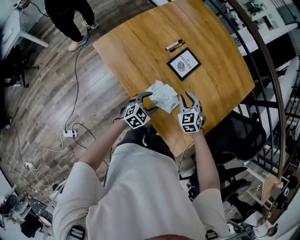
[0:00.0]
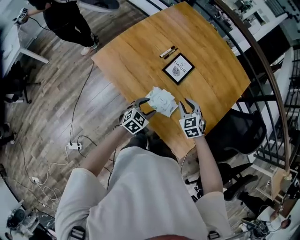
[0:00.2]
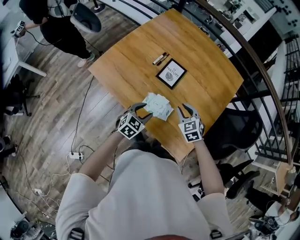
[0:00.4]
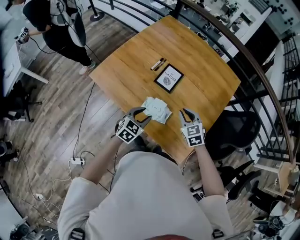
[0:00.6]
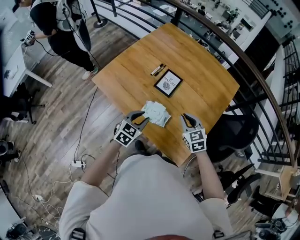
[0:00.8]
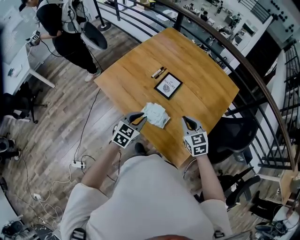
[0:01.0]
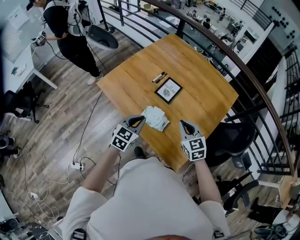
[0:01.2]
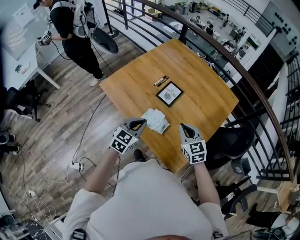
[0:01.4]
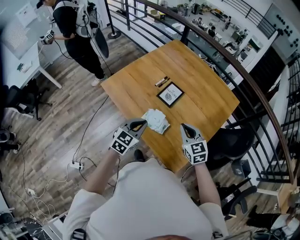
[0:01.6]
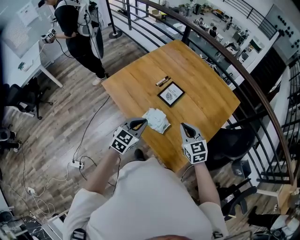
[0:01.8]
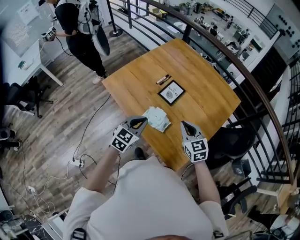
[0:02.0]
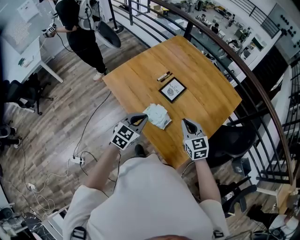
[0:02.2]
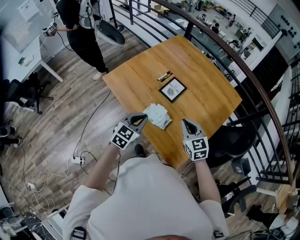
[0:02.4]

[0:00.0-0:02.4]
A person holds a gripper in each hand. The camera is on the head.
0:00.0 to 0:01.2: The left gripper heads upward, covering roughly 25 cm, and closes. The right gripper is displaced upward and backward by about 20 cm, swivels roughly 20 degrees, and closes up.
0:01.2 to 0:02.4: The grippers make only small movements.

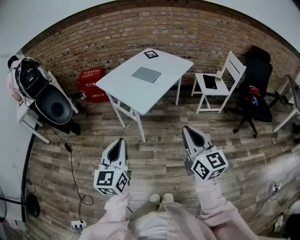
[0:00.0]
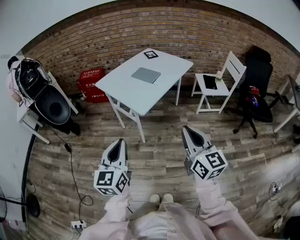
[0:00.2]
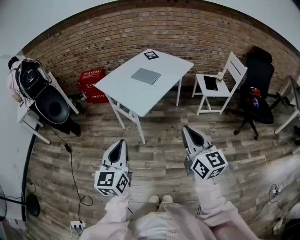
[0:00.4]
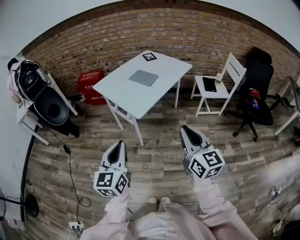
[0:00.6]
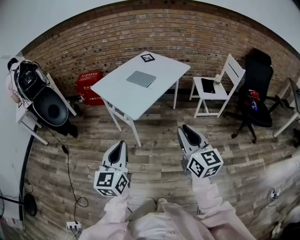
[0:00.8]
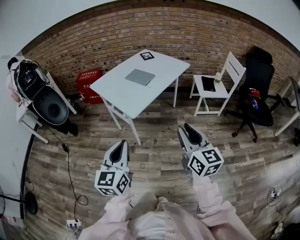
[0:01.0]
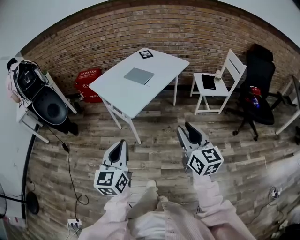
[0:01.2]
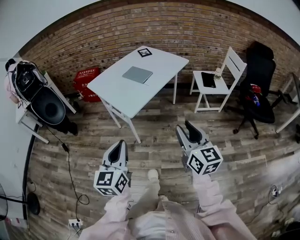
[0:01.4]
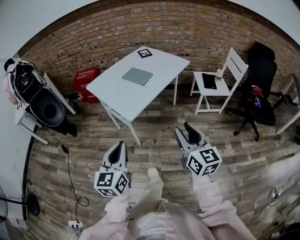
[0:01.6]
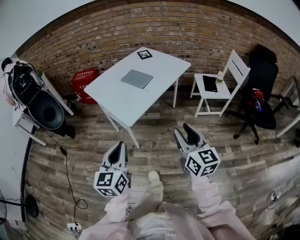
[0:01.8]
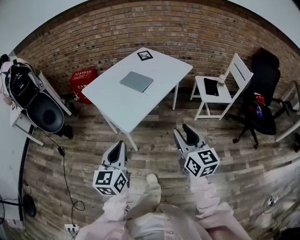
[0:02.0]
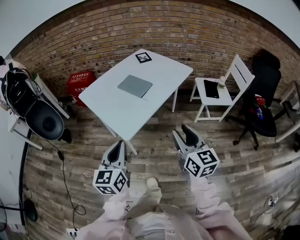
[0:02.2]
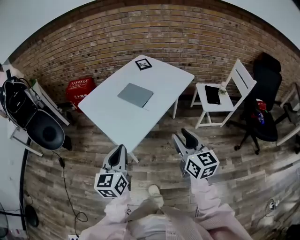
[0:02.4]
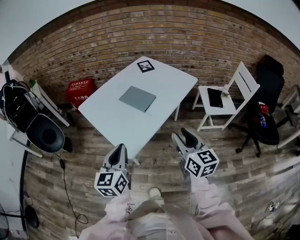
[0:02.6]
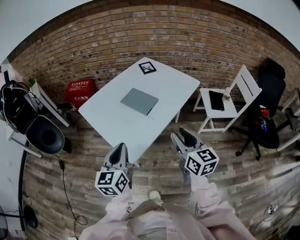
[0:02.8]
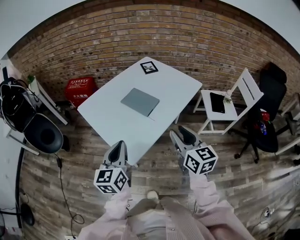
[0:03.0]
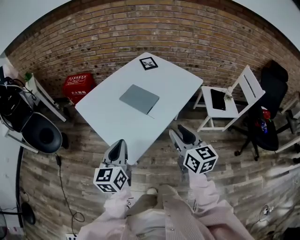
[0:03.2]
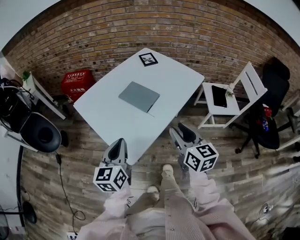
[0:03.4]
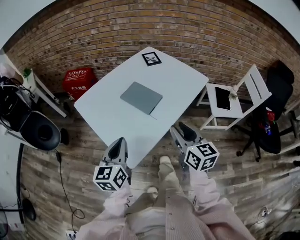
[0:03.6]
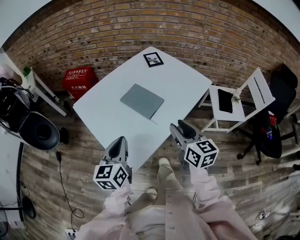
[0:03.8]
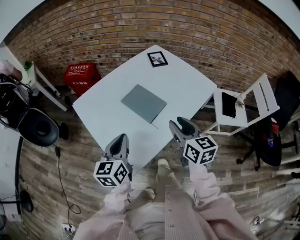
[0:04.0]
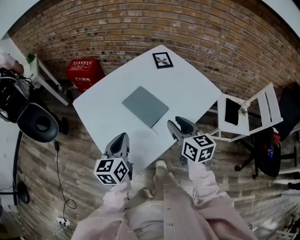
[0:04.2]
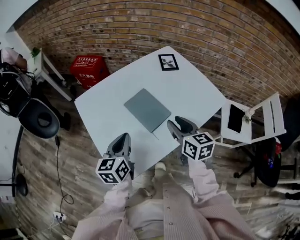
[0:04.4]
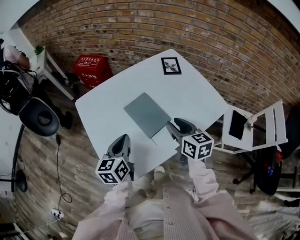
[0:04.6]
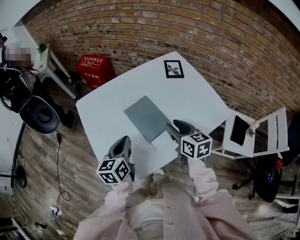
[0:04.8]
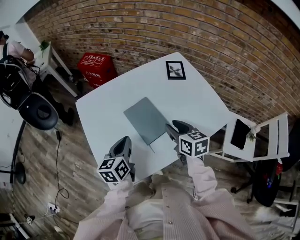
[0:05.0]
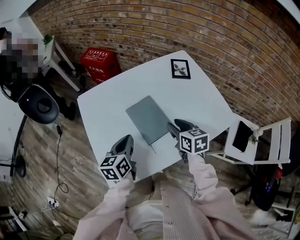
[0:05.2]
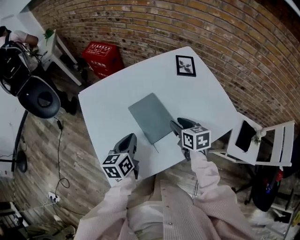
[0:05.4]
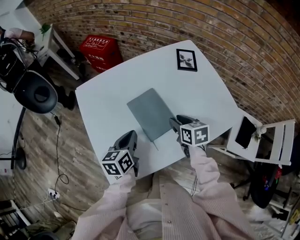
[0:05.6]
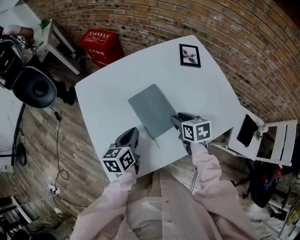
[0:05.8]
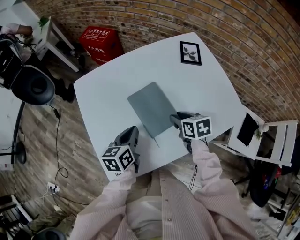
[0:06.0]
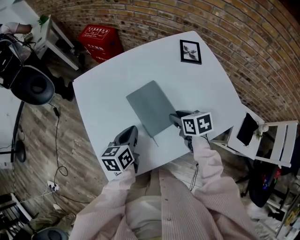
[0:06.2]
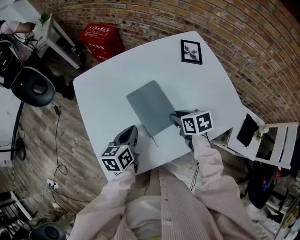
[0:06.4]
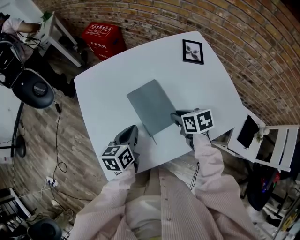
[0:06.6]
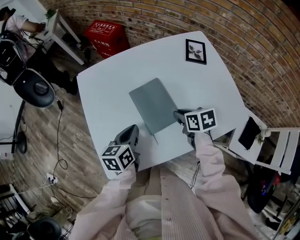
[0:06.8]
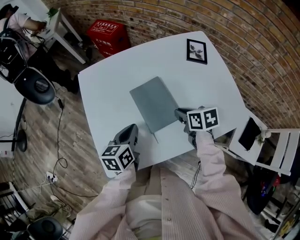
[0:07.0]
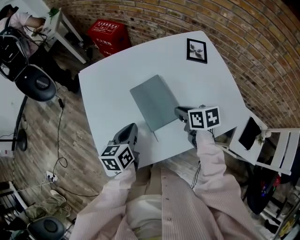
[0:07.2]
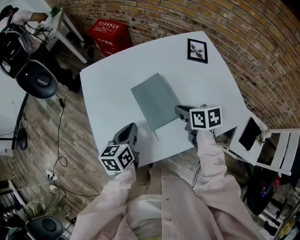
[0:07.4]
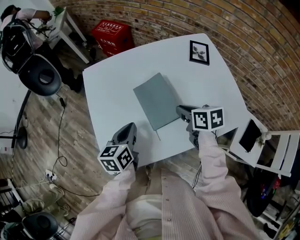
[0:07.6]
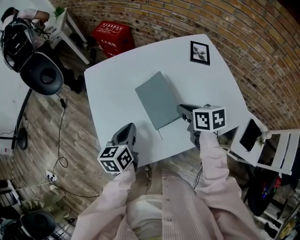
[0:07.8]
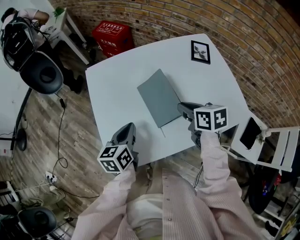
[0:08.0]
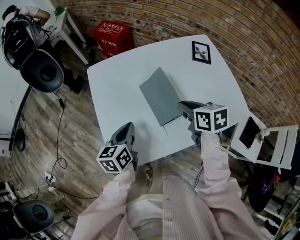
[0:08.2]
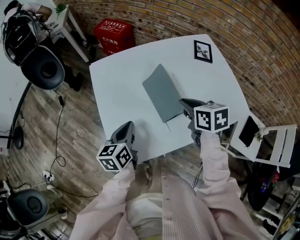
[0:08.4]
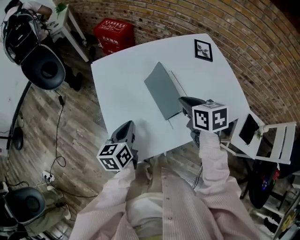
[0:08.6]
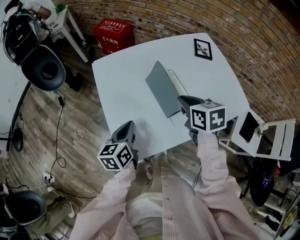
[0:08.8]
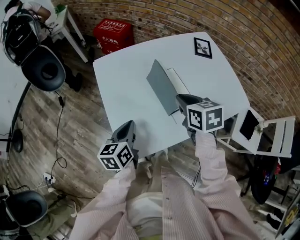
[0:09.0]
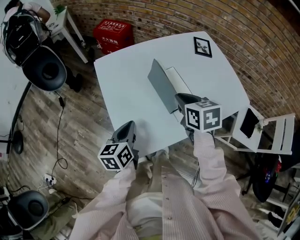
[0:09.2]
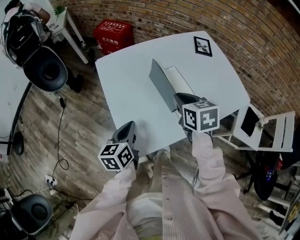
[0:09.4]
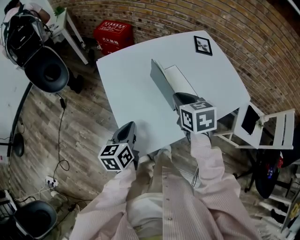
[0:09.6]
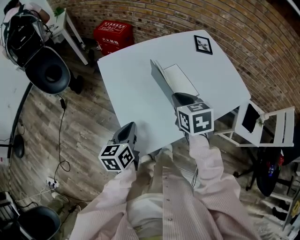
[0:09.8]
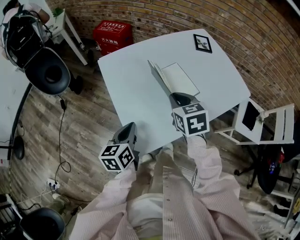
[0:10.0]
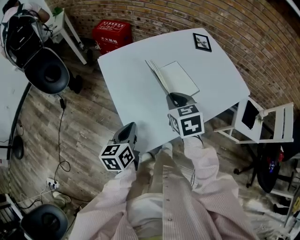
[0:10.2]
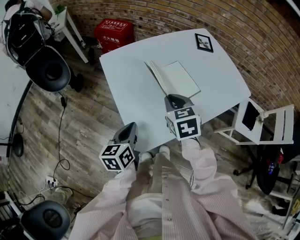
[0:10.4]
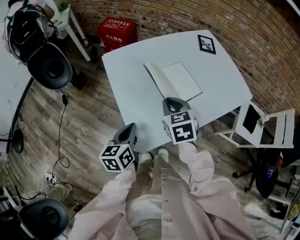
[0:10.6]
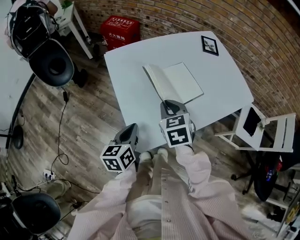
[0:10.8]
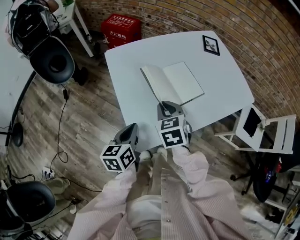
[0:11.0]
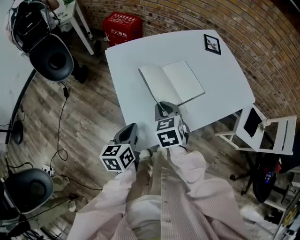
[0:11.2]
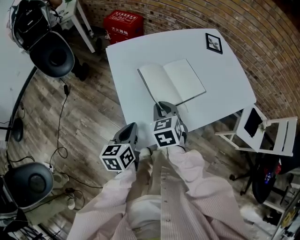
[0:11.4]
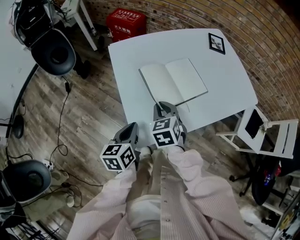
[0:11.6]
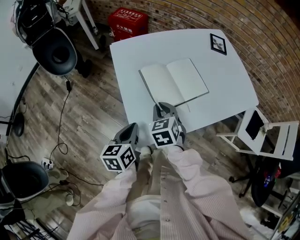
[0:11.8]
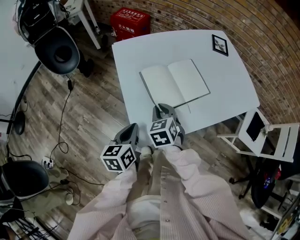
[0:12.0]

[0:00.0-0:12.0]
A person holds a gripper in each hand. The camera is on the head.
0:00.0 to 0:01.6: The grippers both shift to the right and forward by roughly 10 cm. The right gripper opens its fingers.
0:01.6 to 0:03.0: Both grippers move forward, approximately 30 cm.
0:03.0 to 0:04.4: The left gripper shifts roughly 20 cm forward and downward. The right gripper travels forward by some 25 cm, and rotates some 20 degrees.
0:04.4 to 0:06.0: The right gripper shifts some 20 cm downward and forward, and swivels roughly 30 degrees, while the left gripper heads downward and forward, covering about 10 cm.
0:06.0 to 0:07.6: The right gripper ends up approximately 5 cm from where it was, and closes its fingers.
0:07.6 to 0:09.0: The right gripper travels to the left and upward by roughly 15 cm, while the left gripper travels to the left by some 10 cm.
0:09.0 to 0:10.4: The right gripper heads to the left, covering roughly 10 cm, while the left gripper moves backward, roughly 5 cm.
0:10.4 to 0:12.0: The right gripper shifts roughly 10 cm downward and to the left.

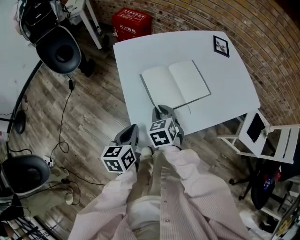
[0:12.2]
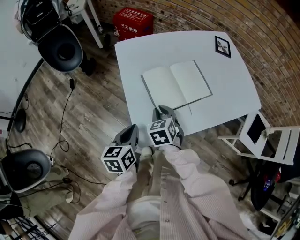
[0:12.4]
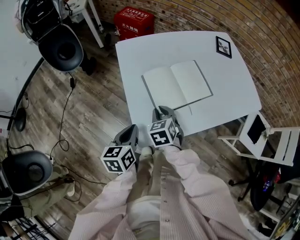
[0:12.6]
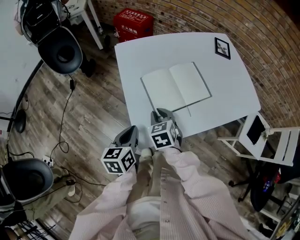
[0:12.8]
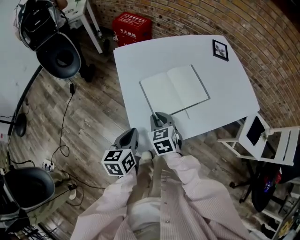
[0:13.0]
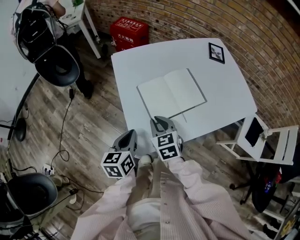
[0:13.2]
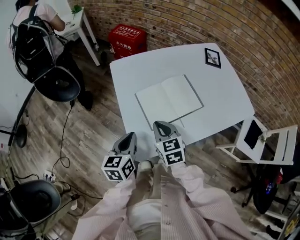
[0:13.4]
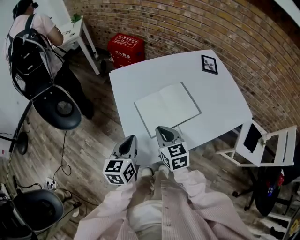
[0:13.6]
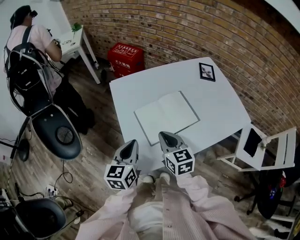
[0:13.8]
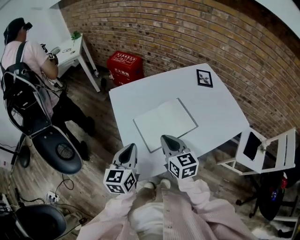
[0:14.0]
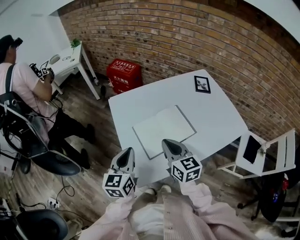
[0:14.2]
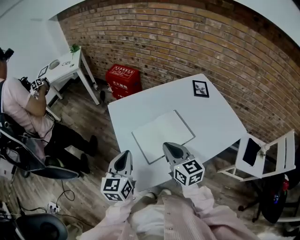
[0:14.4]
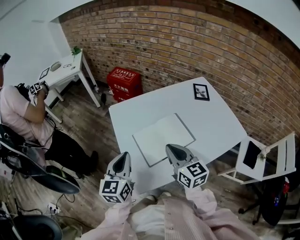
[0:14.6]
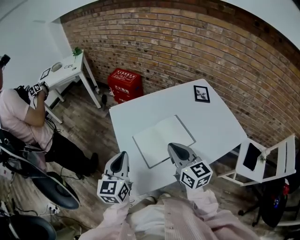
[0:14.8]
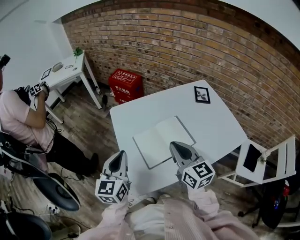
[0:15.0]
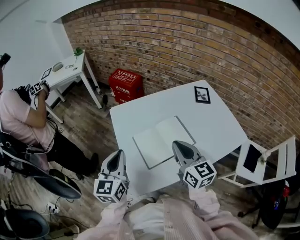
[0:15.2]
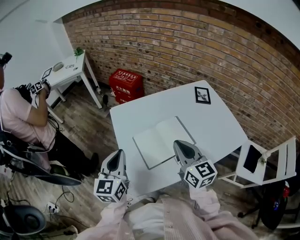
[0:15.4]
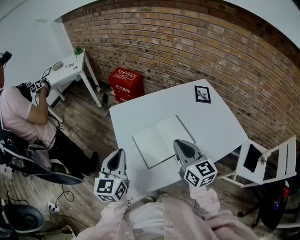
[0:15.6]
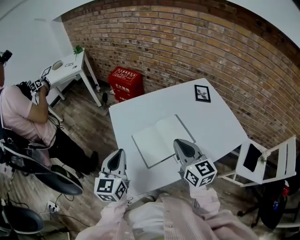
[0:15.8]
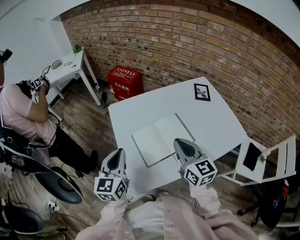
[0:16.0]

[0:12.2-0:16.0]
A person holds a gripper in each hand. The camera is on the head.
0:12.2 to 0:13.4: The right gripper changes its angle by about 20 degrees.
0:13.4 to 0:14.8: The left gripper shifts some 15 cm upward and forward, and turns by roughly 20 degrees. The right gripper heads upward and to the right, covering some 15 cm, and changes its angle by roughly 20 degrees.
0:14.8 to 0:16.0: The grippers make only small movements.

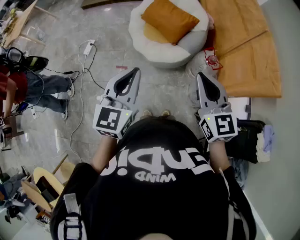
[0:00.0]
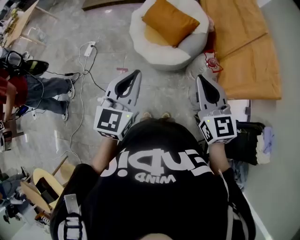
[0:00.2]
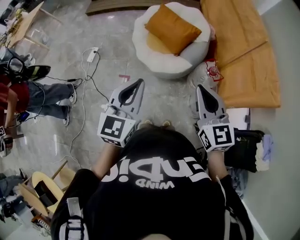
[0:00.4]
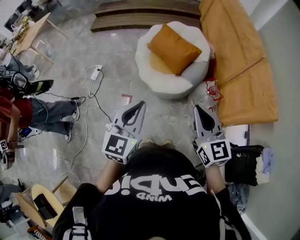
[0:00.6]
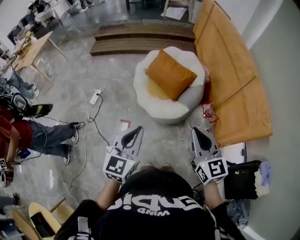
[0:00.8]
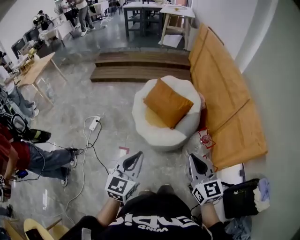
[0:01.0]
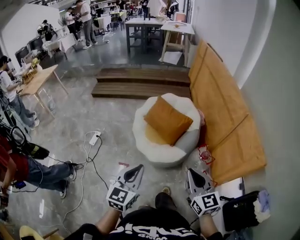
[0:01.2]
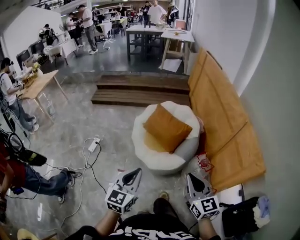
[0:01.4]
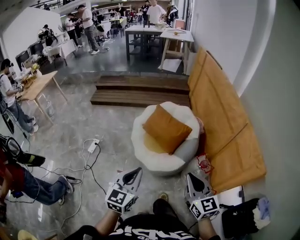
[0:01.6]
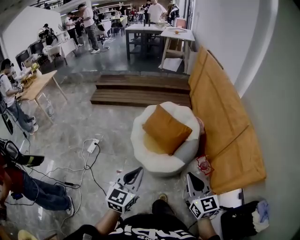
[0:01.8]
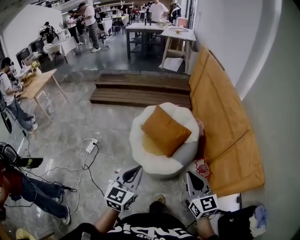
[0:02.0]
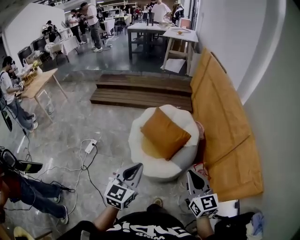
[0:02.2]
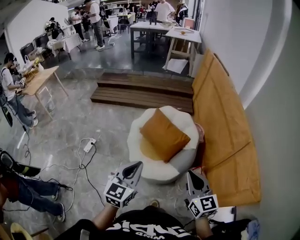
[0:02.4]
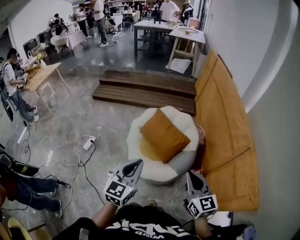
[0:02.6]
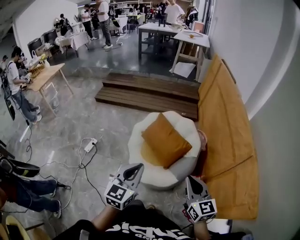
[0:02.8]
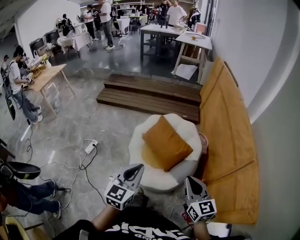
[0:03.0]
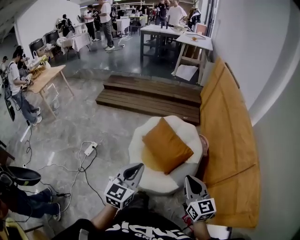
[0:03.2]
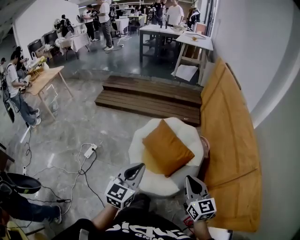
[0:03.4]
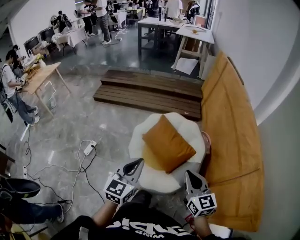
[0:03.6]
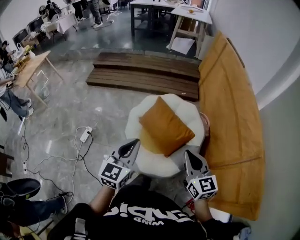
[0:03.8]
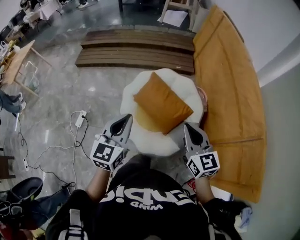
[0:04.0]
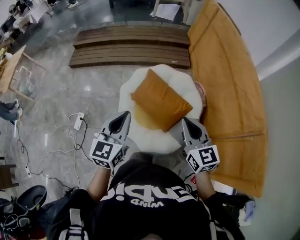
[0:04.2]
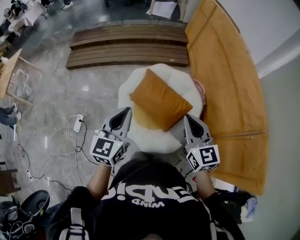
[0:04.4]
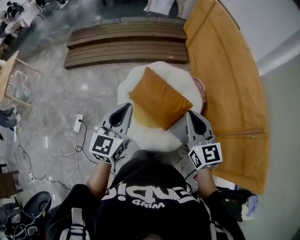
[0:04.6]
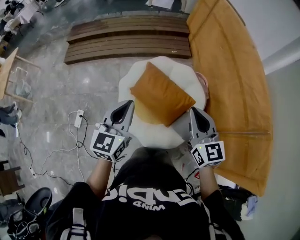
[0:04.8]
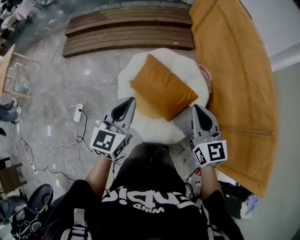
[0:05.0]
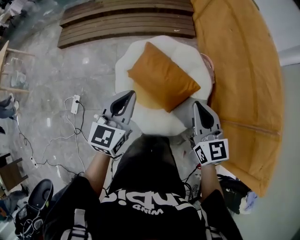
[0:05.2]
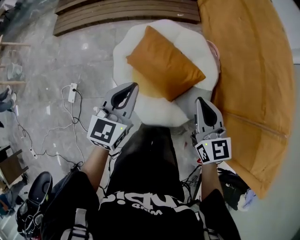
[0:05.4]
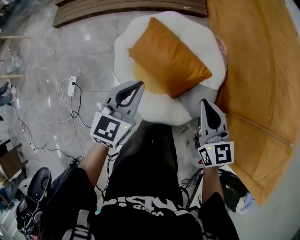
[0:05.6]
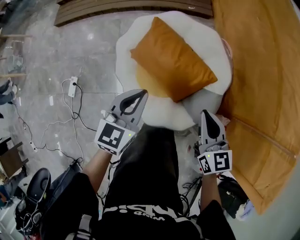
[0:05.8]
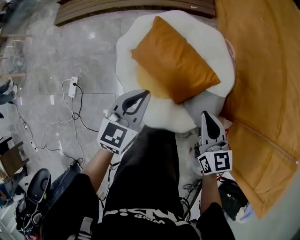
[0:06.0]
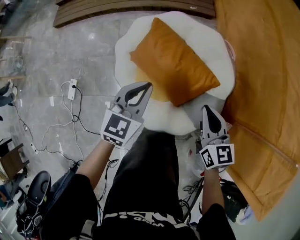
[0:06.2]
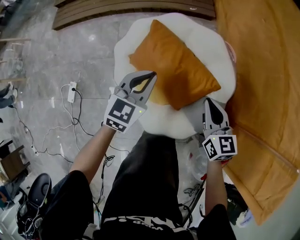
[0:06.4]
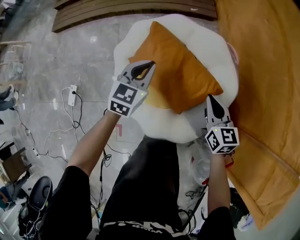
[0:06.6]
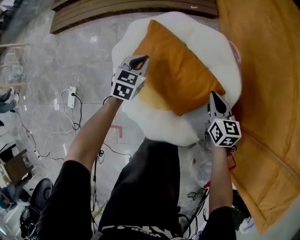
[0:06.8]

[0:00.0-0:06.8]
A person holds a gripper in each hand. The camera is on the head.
0:00.0 to 0:01.4: The right gripper ends up roughly 5 cm from where it was, while the left gripper is displaced to the left and forward by roughly 10 cm.
0:01.4 to 0:02.8: Both grippers travel together forward and to the right, approximately 20 cm.
0:02.8 to 0:04.0: Both grippers travel together forward, roughly 25 cm.
0:04.0 to 0:05.4: Both grippers travel together forward and downward, some 20 cm.
0:05.4 to 0:06.8: Both grippers move downward and forward, about 35 cm. The right gripper rotates approximately 20 degrees, while the left gripper changes its angle by some 20 degrees.
